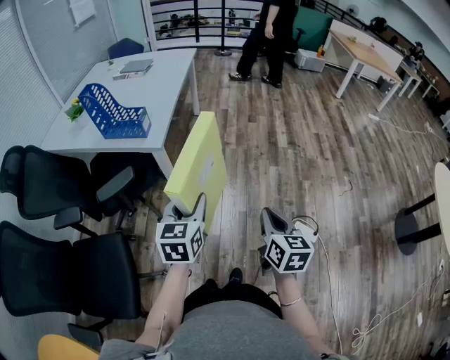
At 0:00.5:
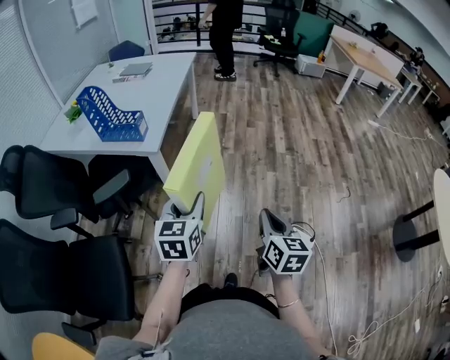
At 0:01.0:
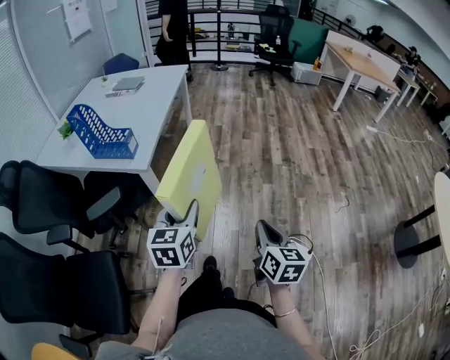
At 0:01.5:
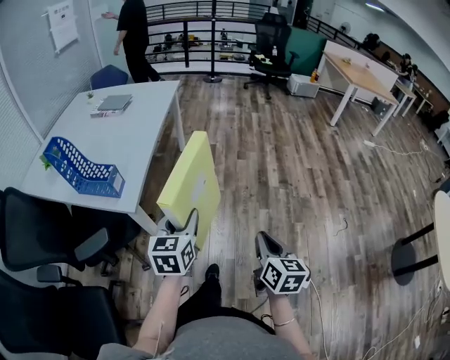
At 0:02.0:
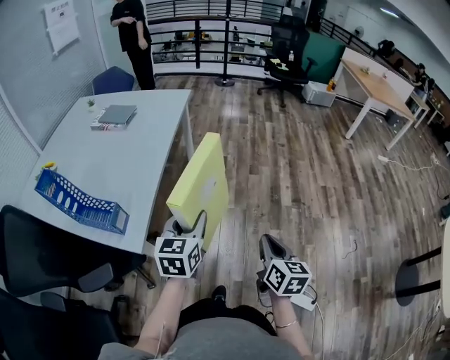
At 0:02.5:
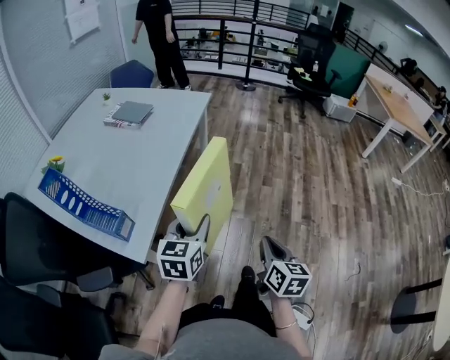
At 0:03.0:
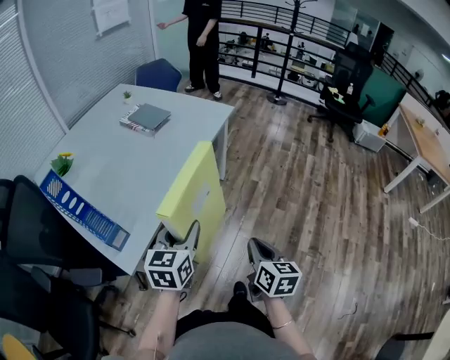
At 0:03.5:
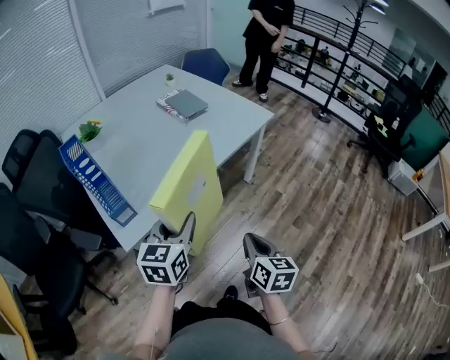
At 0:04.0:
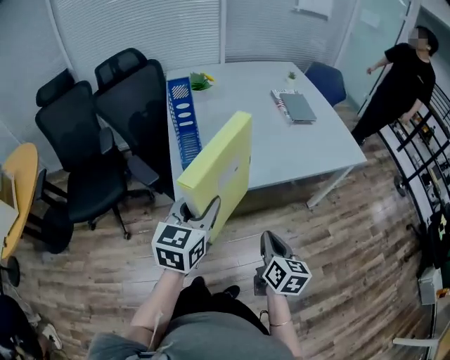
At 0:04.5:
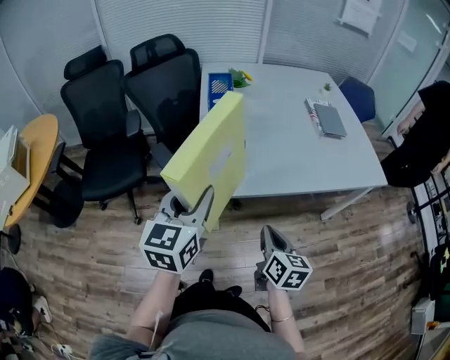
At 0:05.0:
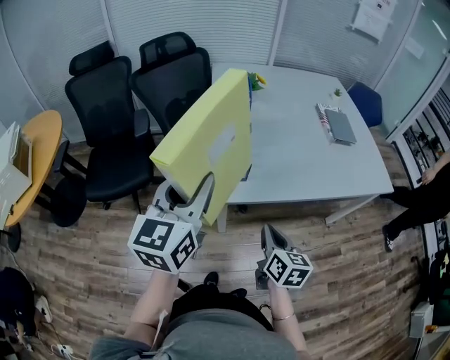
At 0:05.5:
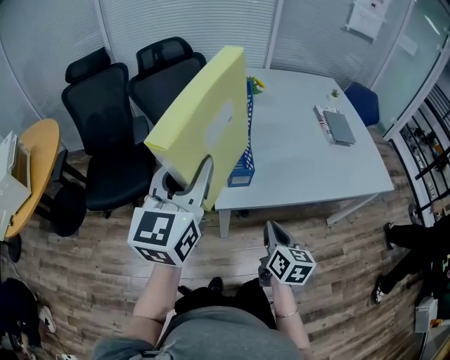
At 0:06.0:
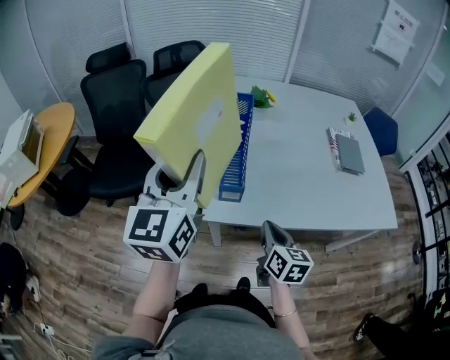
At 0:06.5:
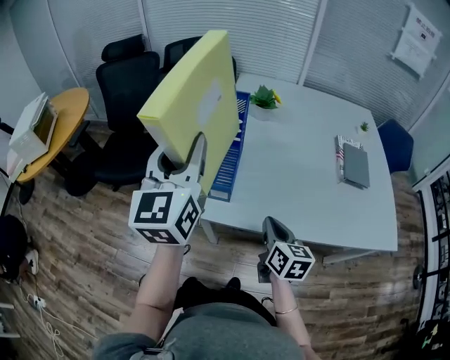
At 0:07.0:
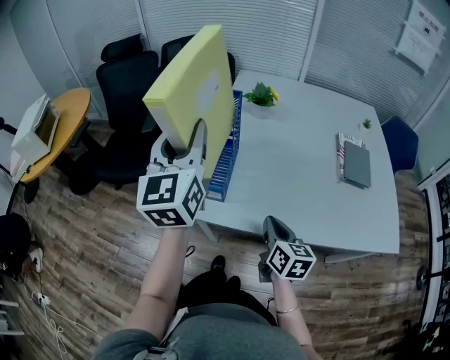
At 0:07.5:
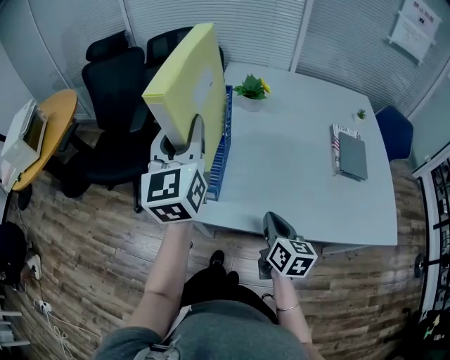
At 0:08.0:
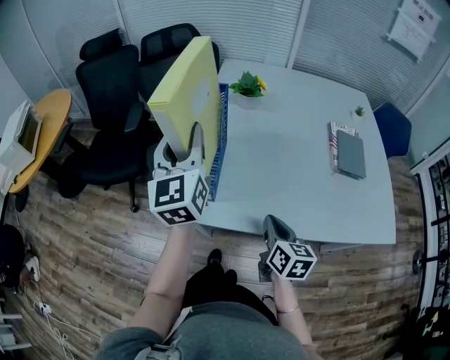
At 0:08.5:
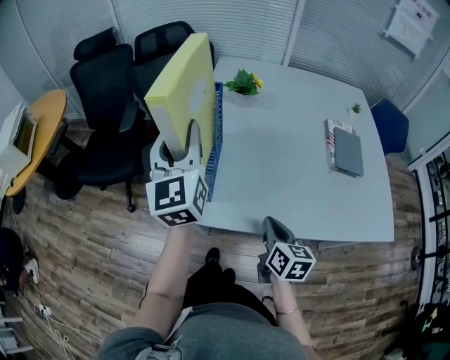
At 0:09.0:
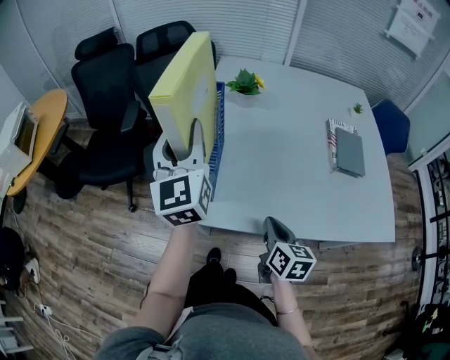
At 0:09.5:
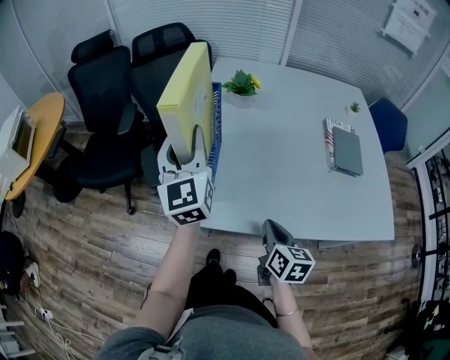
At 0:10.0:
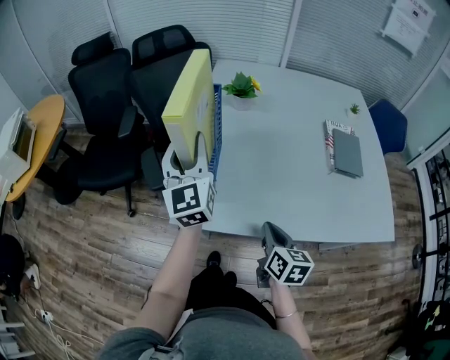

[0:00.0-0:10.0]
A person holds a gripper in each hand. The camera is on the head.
0:00.0 to 0:02.0: Both grippers travel together forward, approximately 40 cm.
0:02.0 to 0:04.0: The left gripper shifts by roughly 15 cm, and rotates roughly 60 degrees; the right gripper moves some 30 cm, and turns by some 70 degrees.
0:04.0 to 0:06.0: The left gripper moves upward, to the left and forward, some 25 cm, and turns by about 40 degrees. Meanwhile the right gripper goes about 20 cm forward and to the left, and turns by approximately 20 degrees.
0:06.0 to 0:08.0: The right gripper travels to the right by approximately 10 cm, while the left gripper is displaced forward and to the right by about 15 cm.
0:08.0 to 0:10.0: There are only small adjustments of the grippers.

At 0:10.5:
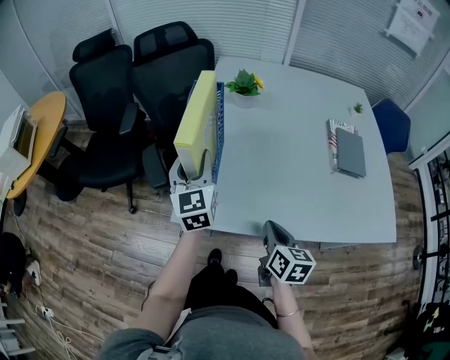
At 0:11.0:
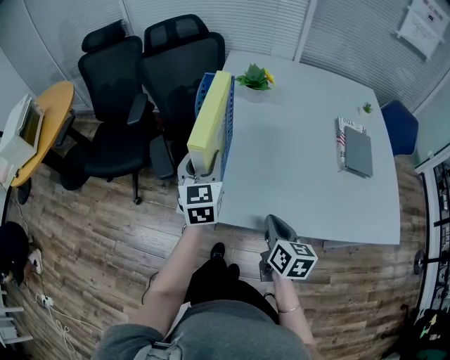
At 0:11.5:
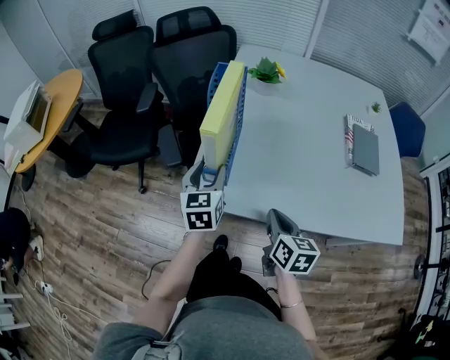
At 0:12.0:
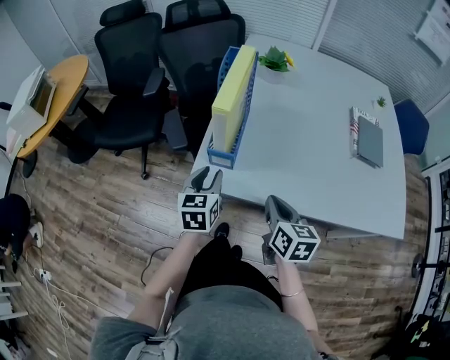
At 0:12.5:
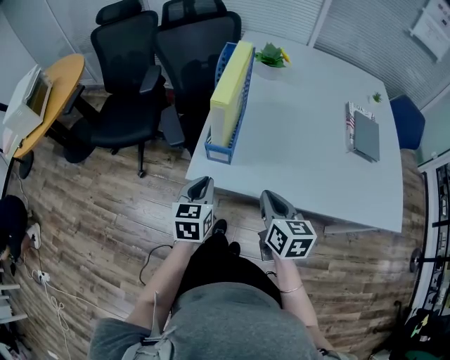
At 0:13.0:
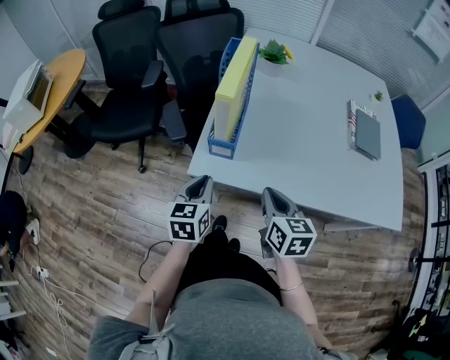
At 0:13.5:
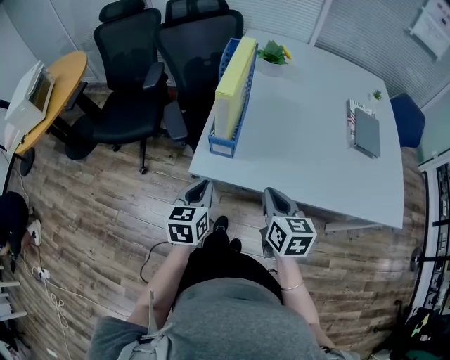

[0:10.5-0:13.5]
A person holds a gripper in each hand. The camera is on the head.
0:10.5 to 0:12.0: The right gripper goes about 5 cm to the left. The left gripper heads downward and backward, covering about 15 cm, and rotates some 30 degrees.
0:12.0 to 0:13.5: The left gripper heads backward, covering some 5 cm, and closes.

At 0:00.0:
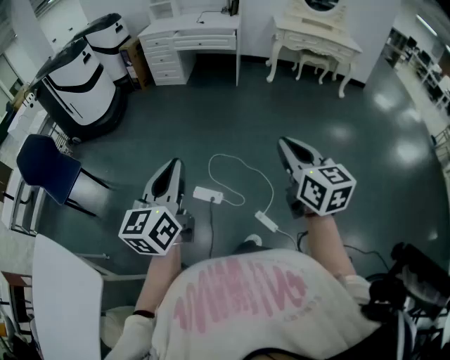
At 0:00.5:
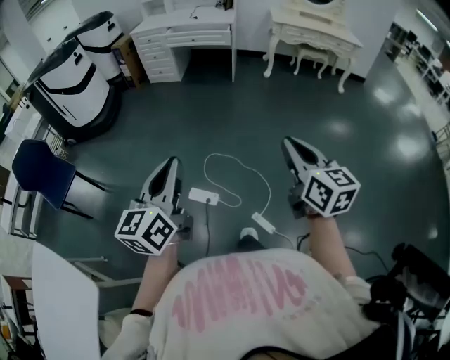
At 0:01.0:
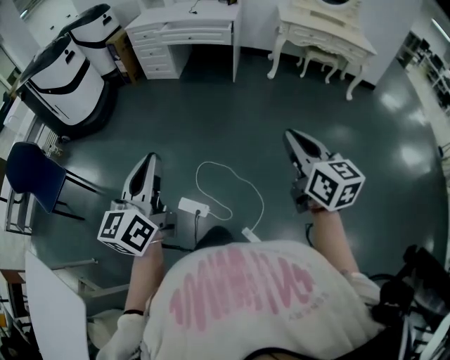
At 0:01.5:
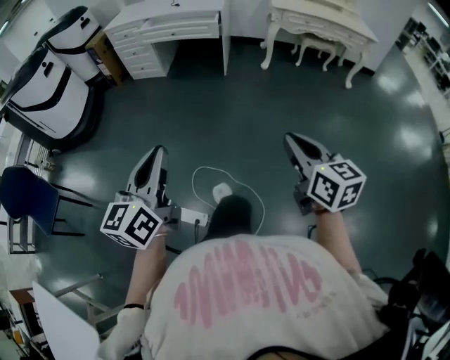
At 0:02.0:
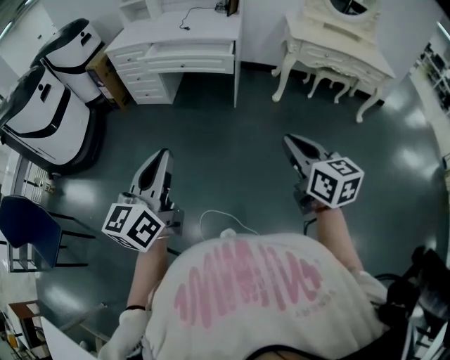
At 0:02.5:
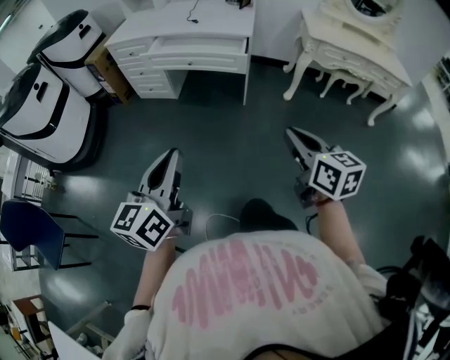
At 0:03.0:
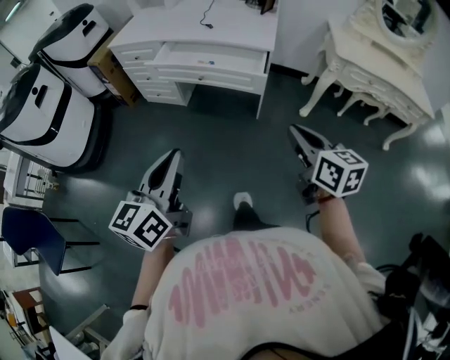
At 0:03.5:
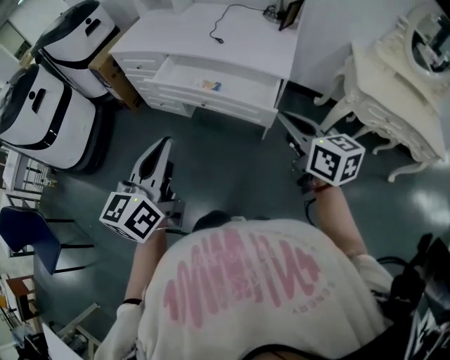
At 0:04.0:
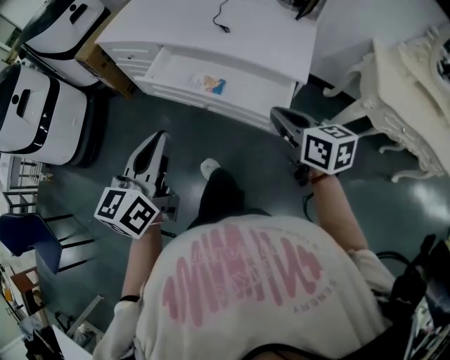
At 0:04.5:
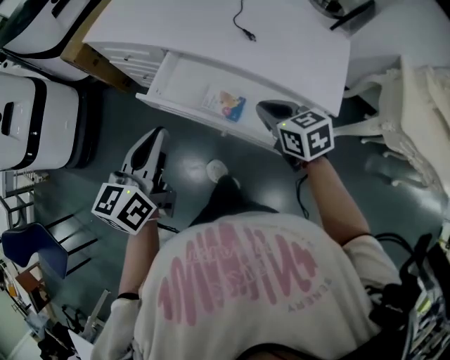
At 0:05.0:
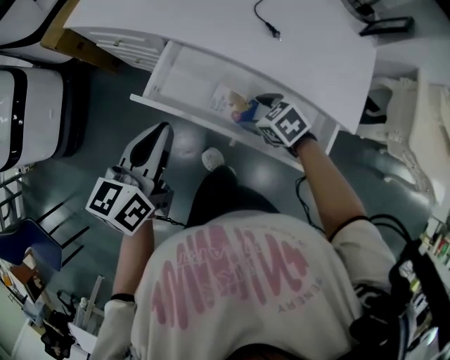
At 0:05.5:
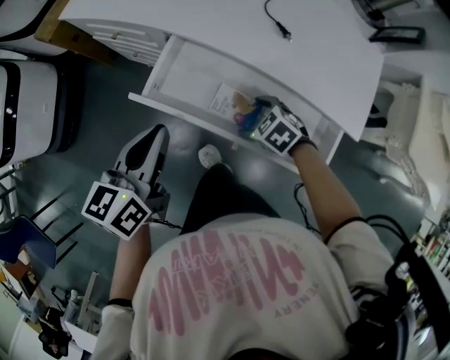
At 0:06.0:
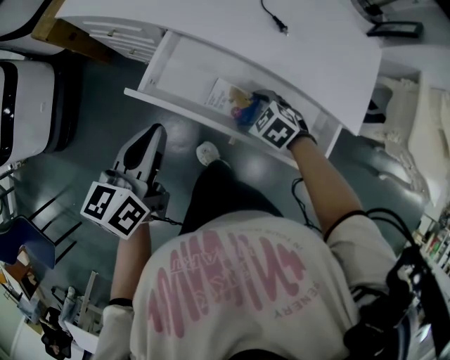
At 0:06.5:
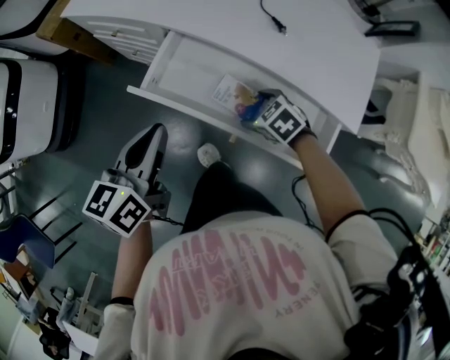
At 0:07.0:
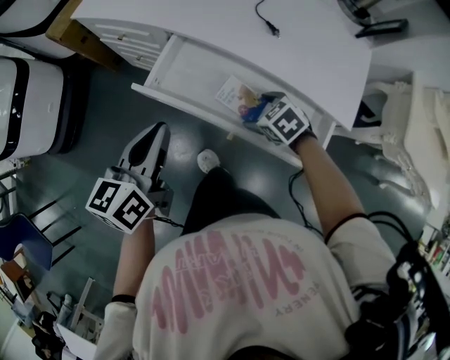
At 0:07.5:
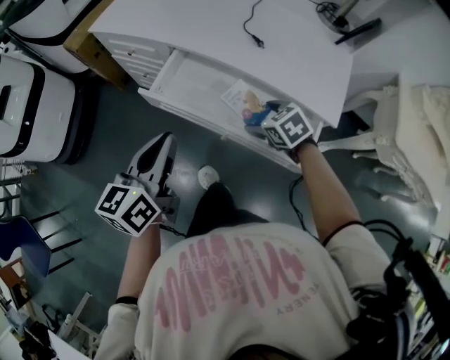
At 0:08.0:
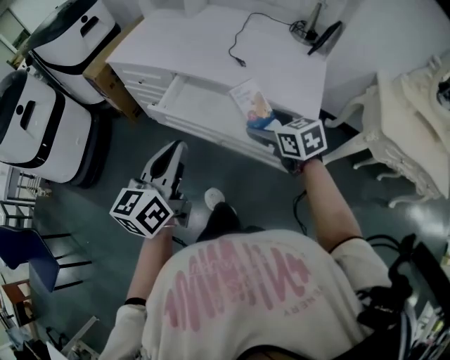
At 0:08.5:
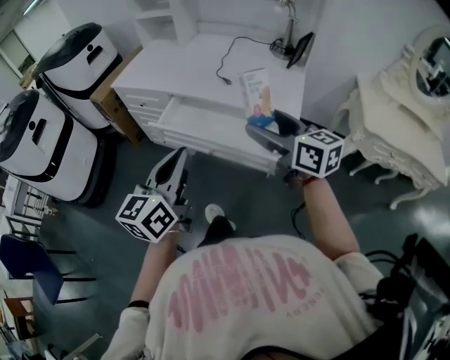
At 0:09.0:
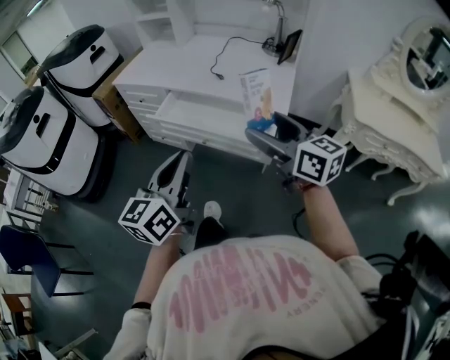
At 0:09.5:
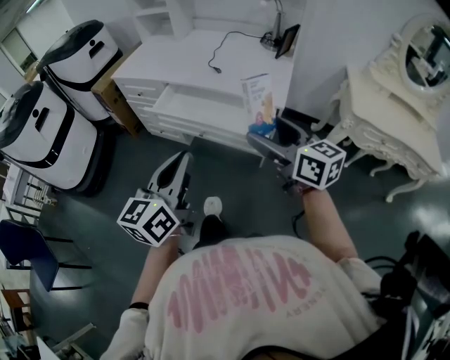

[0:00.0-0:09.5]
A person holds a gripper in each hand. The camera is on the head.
0:00.0 to 0:02.0: The pair of grippers is taken forward, approximately 60 cm.
0:02.0 to 0:04.0: Both grippers are carried forward, approximately 60 cm. The right gripper swivels roughly 20 degrees.
0:04.0 to 0:05.5: The right gripper is displaced downward and forward by roughly 35 cm, tilts its fingers roughly 40 degrees downward, and opens its fingers. The left gripper goes roughly 30 cm forward and downward.
0:05.5 to 0:07.5: The left gripper heads backward and upward, covering some 10 cm. The right gripper travels upward by approximately 10 cm.
0:07.5 to 0:09.5: The left gripper goes some 30 cm backward, upward and to the right, while the right gripper heads upward and backward, covering about 40 cm, and points its fingers roughly 50 degrees further upward.

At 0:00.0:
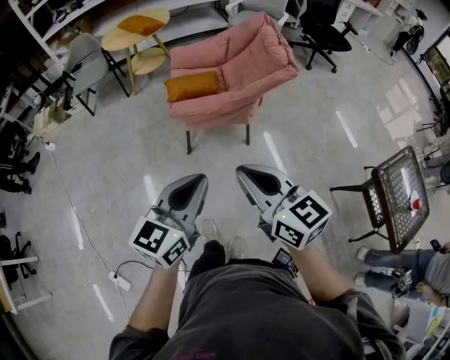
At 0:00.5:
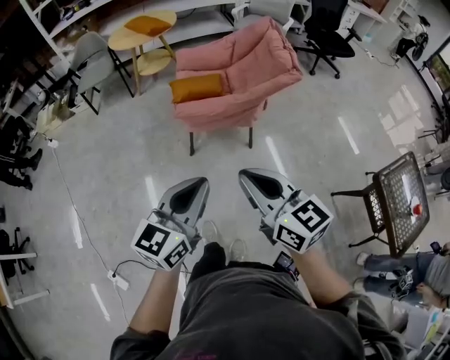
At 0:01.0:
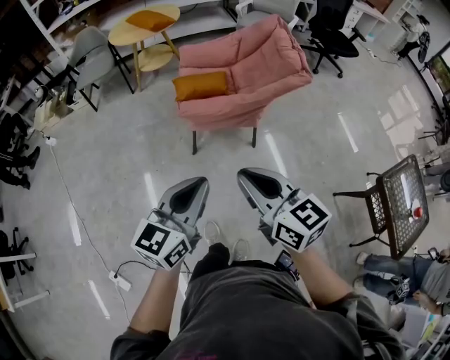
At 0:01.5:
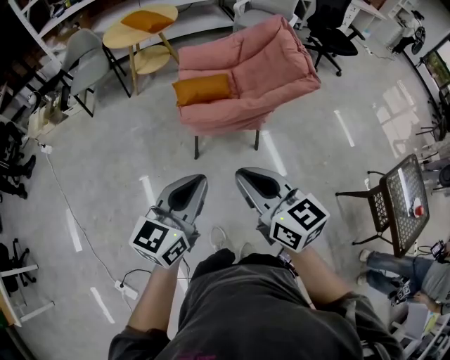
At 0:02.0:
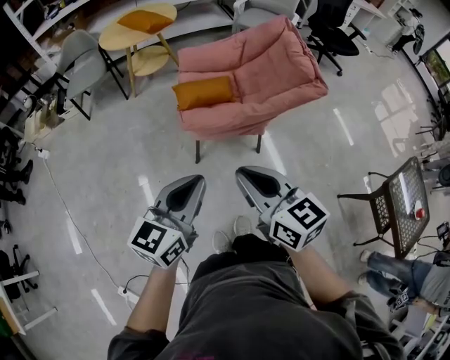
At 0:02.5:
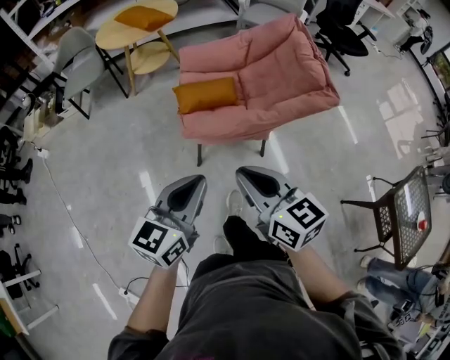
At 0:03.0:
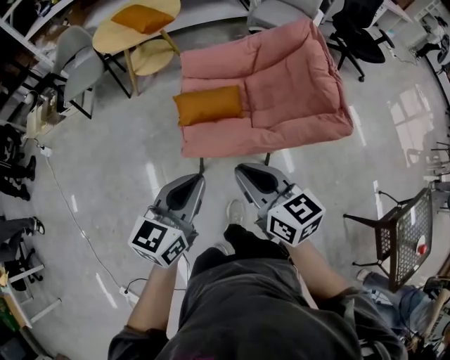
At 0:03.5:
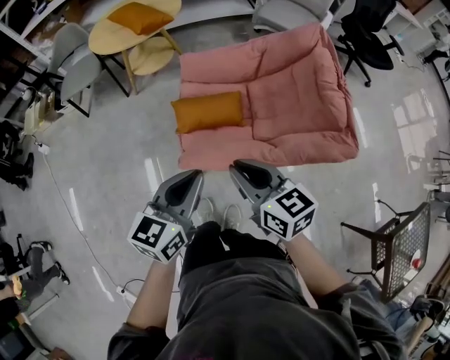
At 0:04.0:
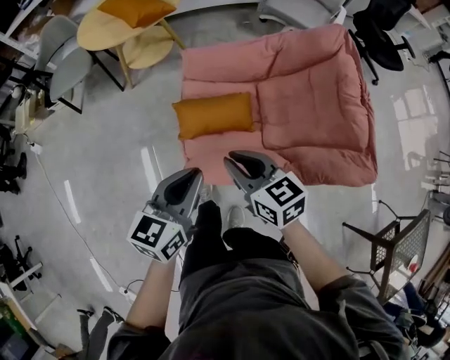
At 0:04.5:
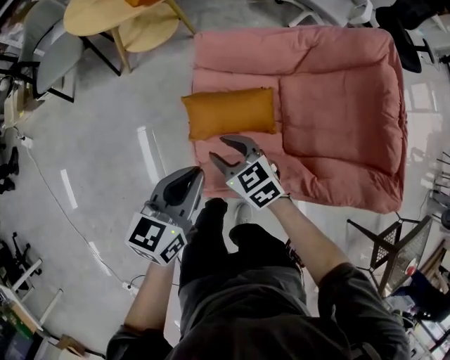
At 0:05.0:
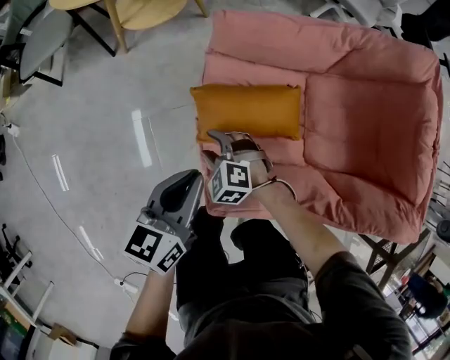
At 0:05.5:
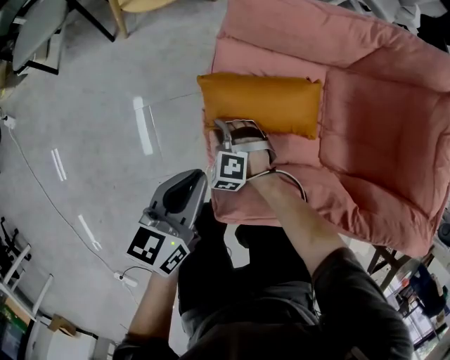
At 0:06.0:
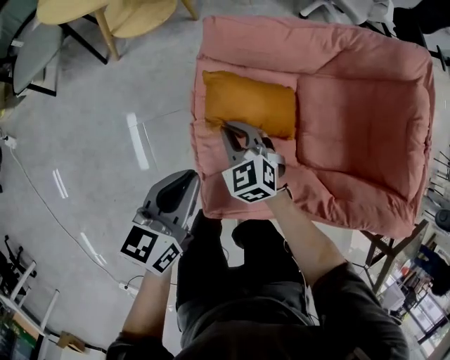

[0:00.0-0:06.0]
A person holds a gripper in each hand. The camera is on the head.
0:00.0 to 0:02.0: Both grippers move forward and to the left, approximately 20 cm.
0:02.0 to 0:04.0: The two grippers travel together, forward, approximately 40 cm. The right gripper is displaced downward by approximately 20 cm.
0:04.0 to 0:06.0: The right gripper heads downward and forward, covering approximately 35 cm, changes its angle by approximately 40 degrees, and opens, then closes once more, while the left gripper is displaced downward, forward and to the left by about 25 cm.
